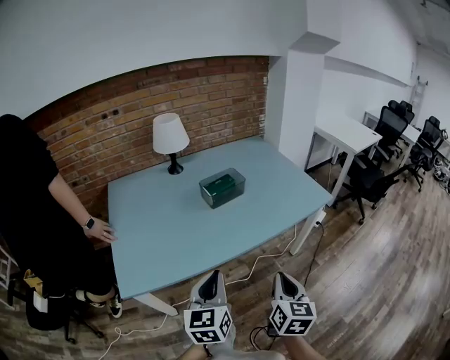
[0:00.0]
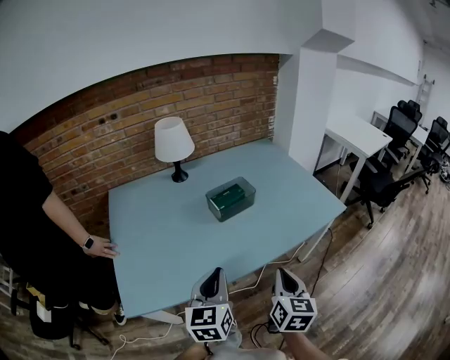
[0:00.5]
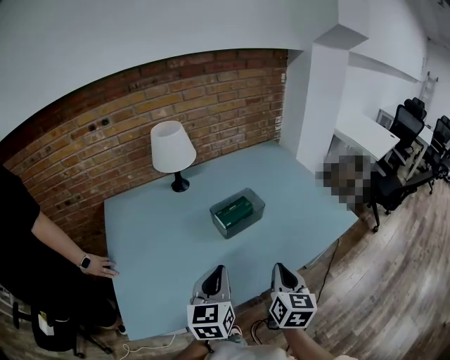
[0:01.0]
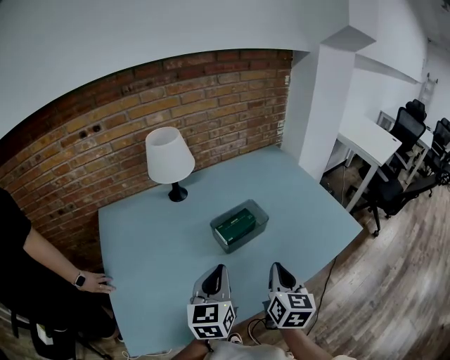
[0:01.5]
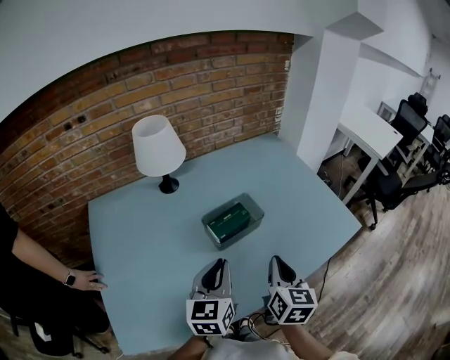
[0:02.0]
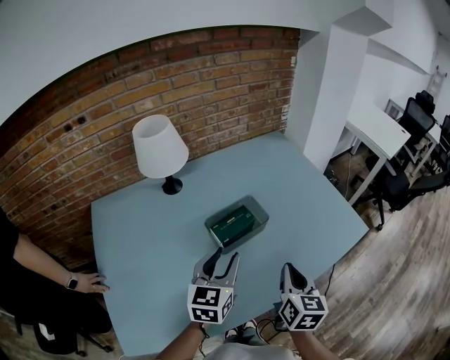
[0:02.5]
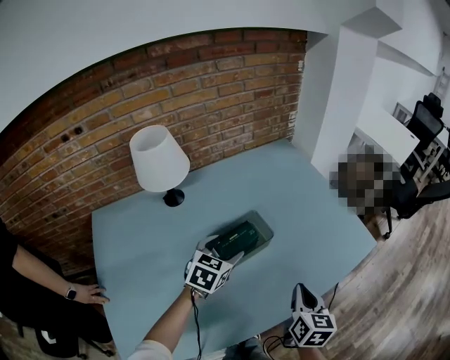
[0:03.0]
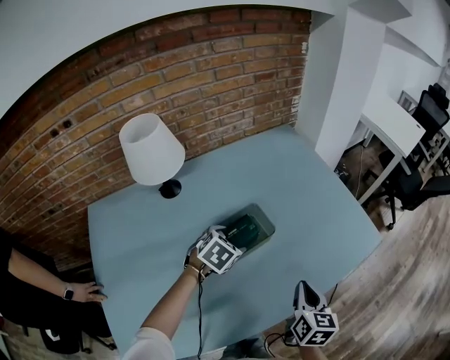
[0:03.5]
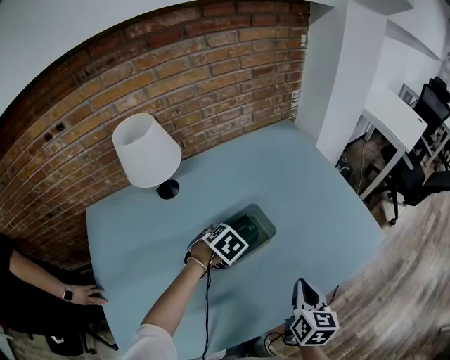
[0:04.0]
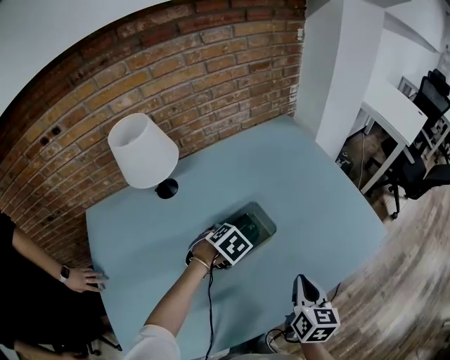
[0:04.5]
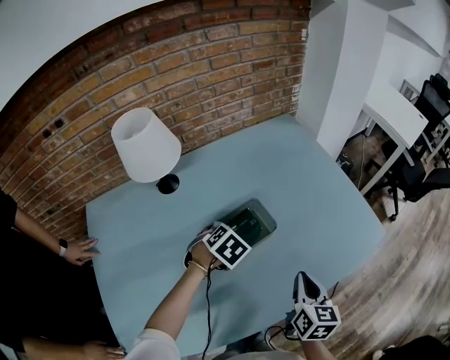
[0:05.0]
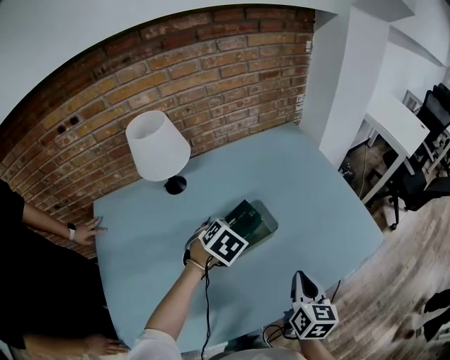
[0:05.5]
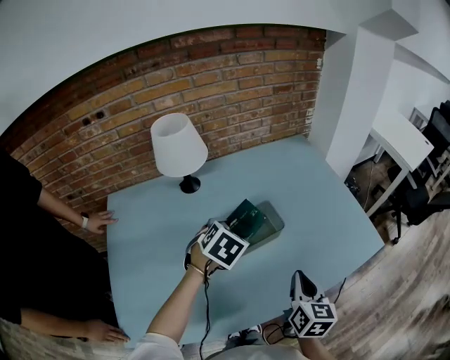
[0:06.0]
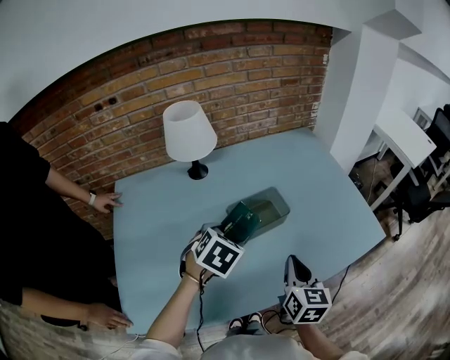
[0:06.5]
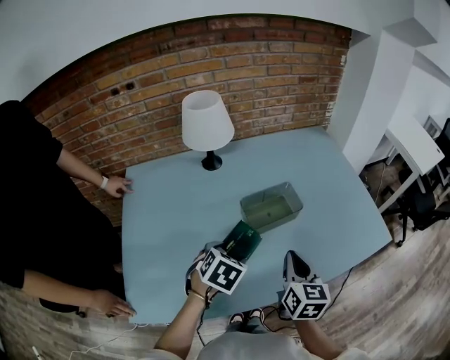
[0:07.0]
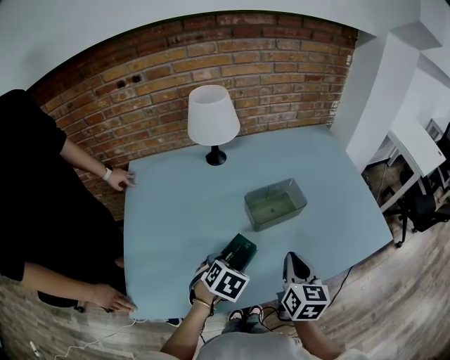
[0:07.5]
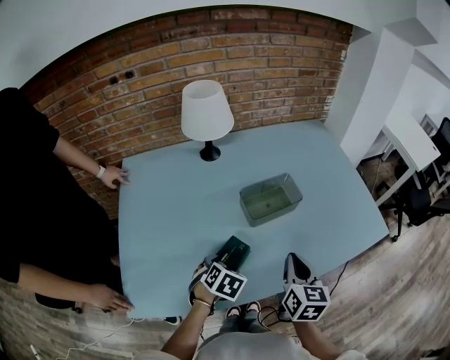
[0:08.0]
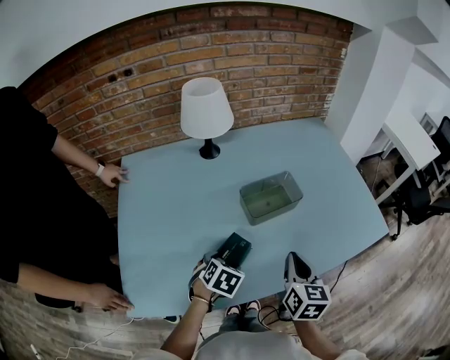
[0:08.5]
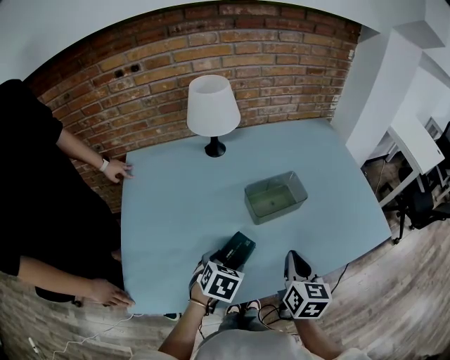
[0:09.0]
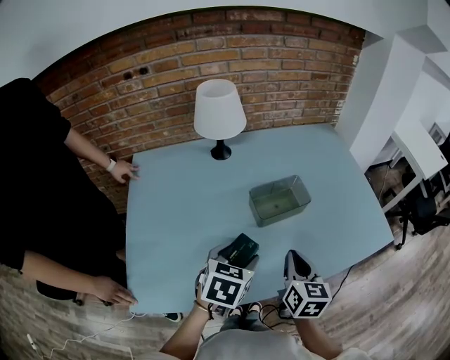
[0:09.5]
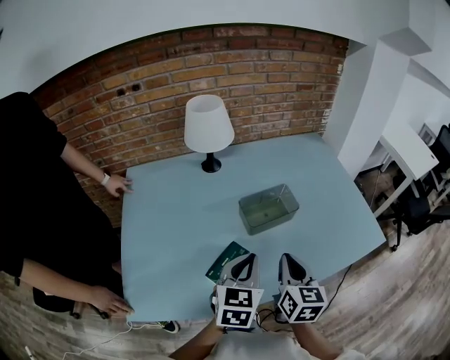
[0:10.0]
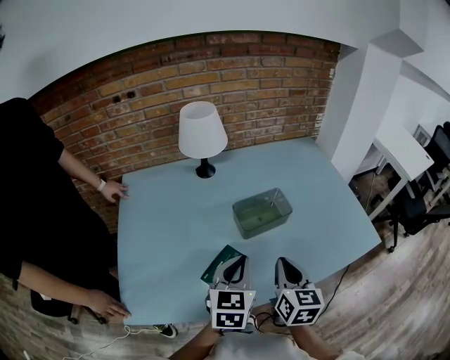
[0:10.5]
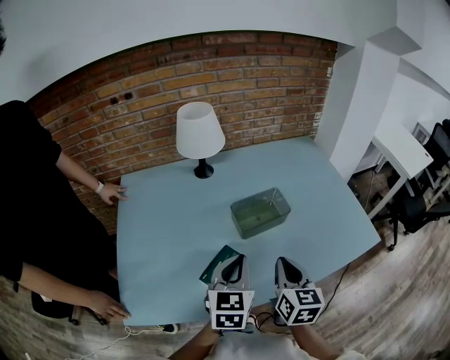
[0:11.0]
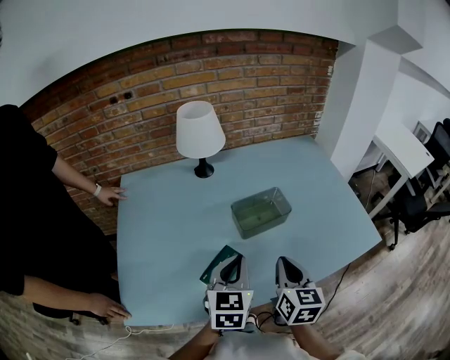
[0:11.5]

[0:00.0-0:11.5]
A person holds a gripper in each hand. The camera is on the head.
0:00.0 to 0:02.0: Both grippers travel together forward, approximately 35 cm.
0:02.0 to 0:04.0: The left gripper shifts about 25 cm forward and downward, points its fingers approximately 60 degrees further downward, and opens. The right gripper goes about 10 cm downward, forward and to the right.
0:04.0 to 0:06.0: The right gripper heads upward, covering approximately 5 cm. The left gripper is displaced upward by approximately 15 cm, and rotates about 20 degrees.
0:06.0 to 0:07.5: The right gripper moves to the left, some 10 cm, while the left gripper travels backward and downward by some 20 cm.
0:07.5 to 0:09.5: The left gripper moves upward, about 10 cm, and changes its angle by some 20 degrees.
0:09.5 to 0:11.5: The left gripper ends up about 5 cm from where it was, changes its angle by roughly 20 degrees, and closes up.

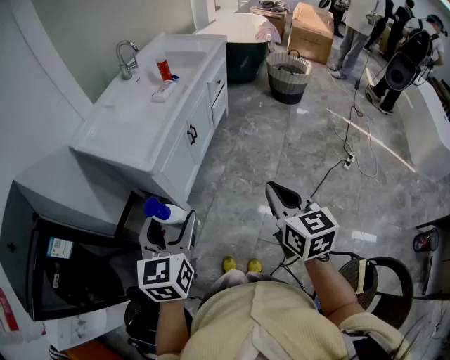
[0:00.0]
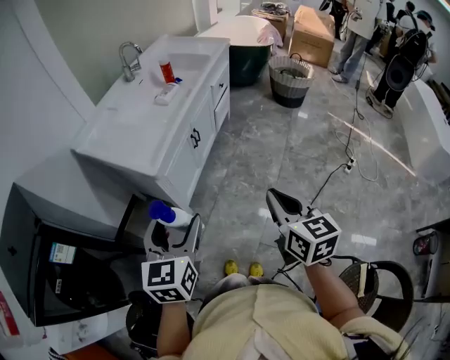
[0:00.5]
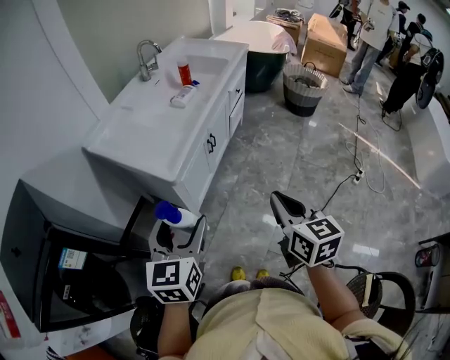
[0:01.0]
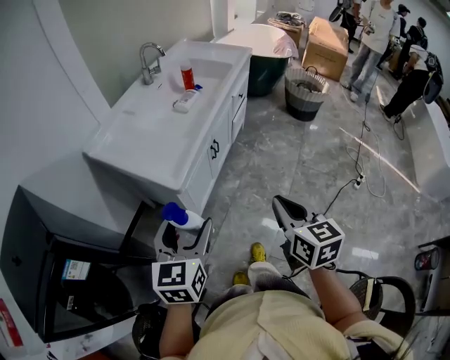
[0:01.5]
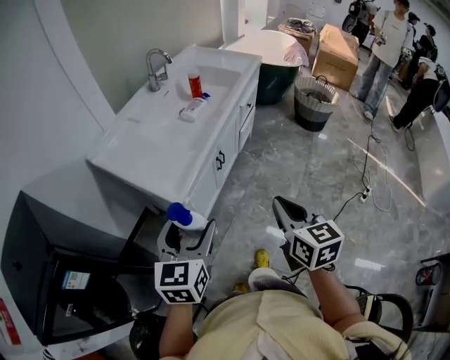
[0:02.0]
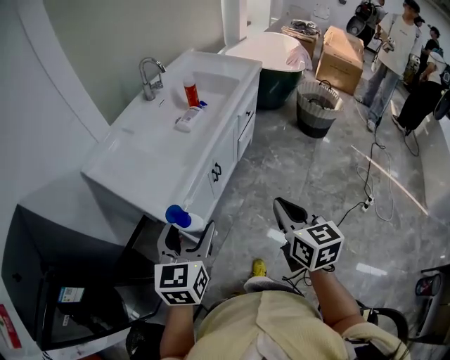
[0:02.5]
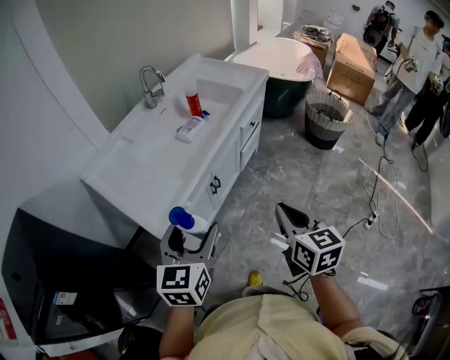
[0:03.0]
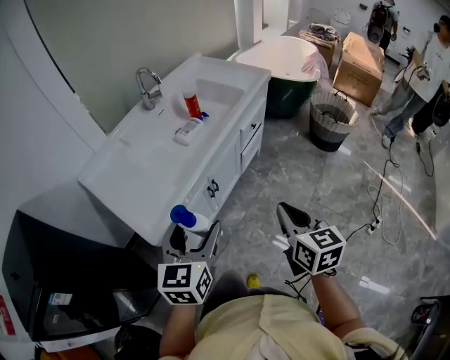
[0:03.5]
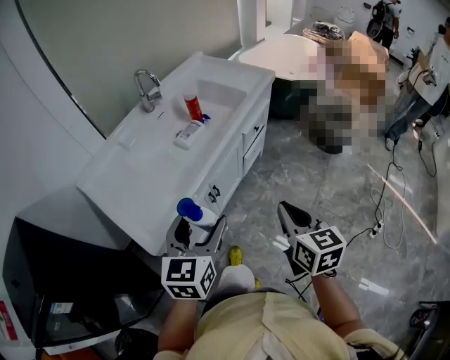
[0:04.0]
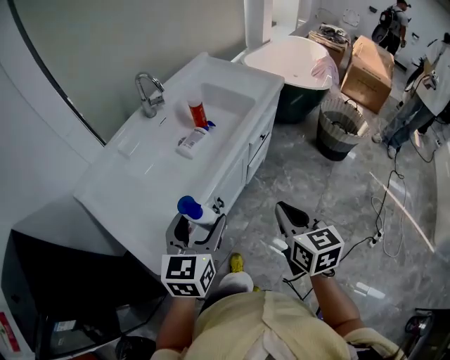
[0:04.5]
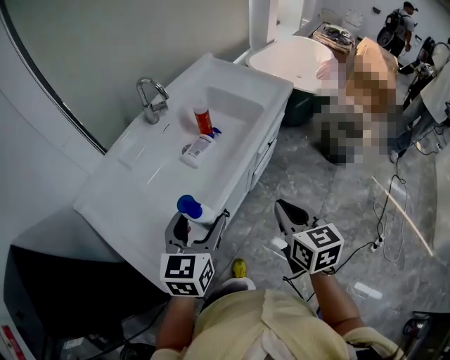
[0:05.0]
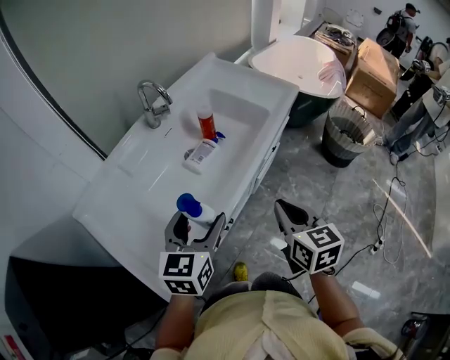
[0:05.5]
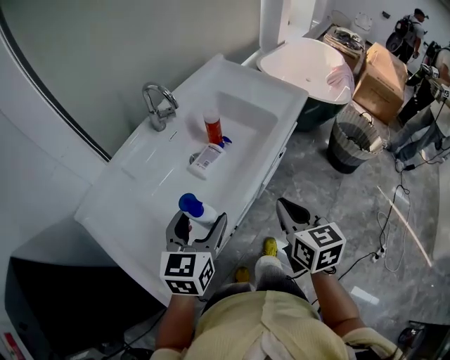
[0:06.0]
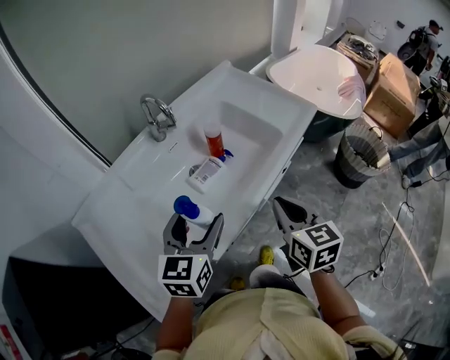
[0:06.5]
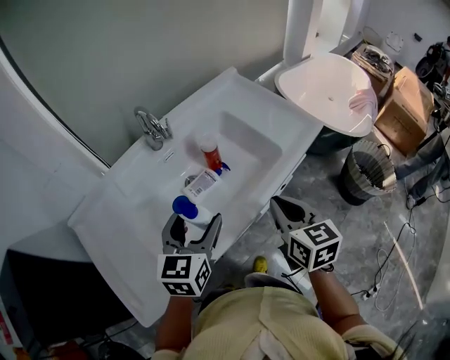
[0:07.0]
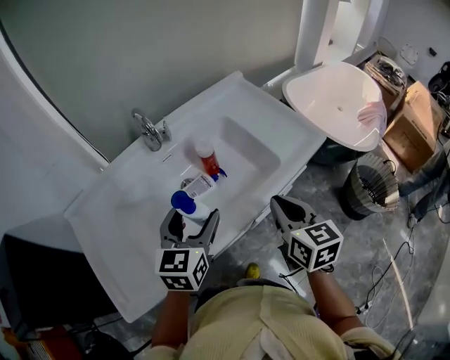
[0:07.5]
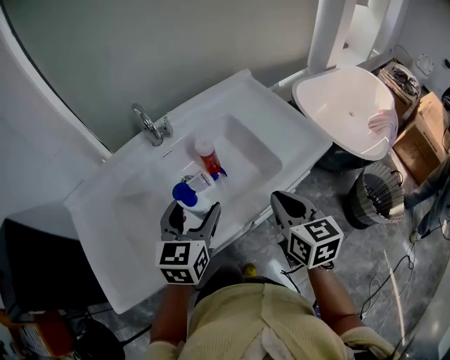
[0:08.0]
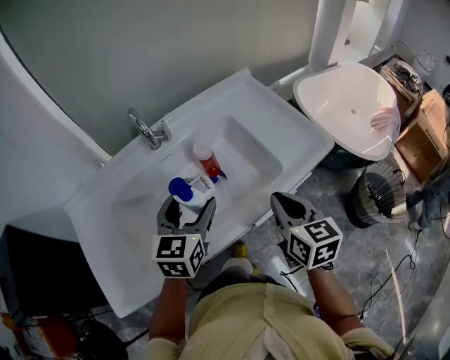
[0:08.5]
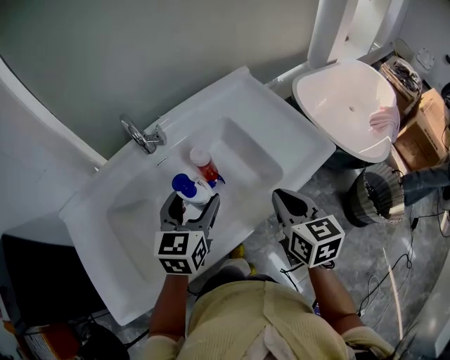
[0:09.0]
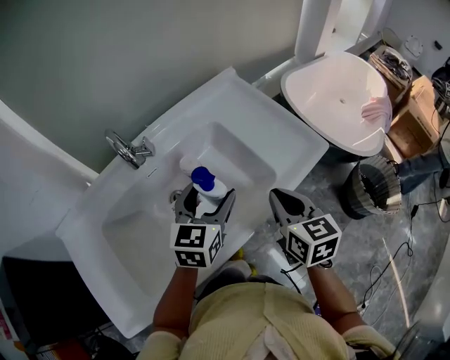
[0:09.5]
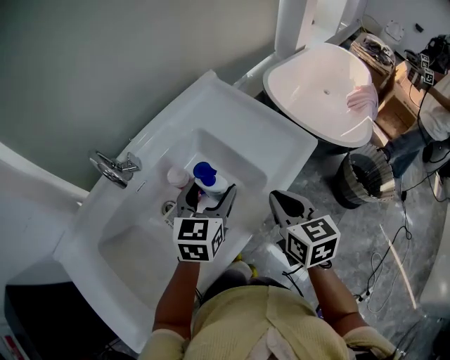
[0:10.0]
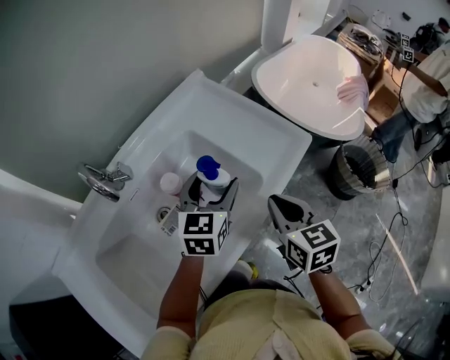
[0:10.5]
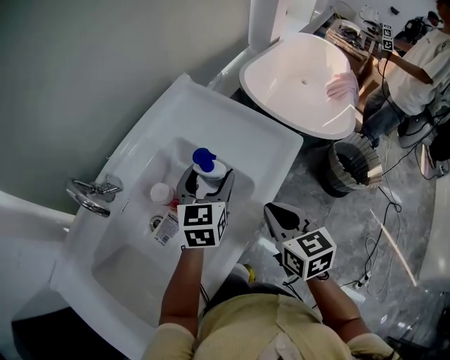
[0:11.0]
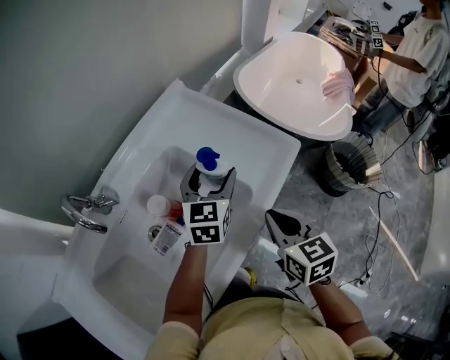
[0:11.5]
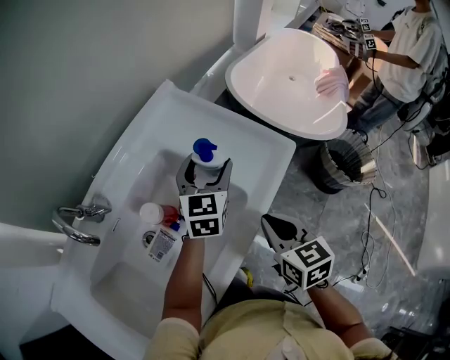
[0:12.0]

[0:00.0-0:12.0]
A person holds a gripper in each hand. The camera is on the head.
0:00.0 to 0:02.0: The left gripper travels forward by roughly 10 cm, while the right gripper heads forward and to the left, covering approximately 15 cm.
0:02.0 to 0:04.0: The grippers both shift forward and to the right by some 25 cm.
0:04.0 to 0:06.0: The grippers both shift forward by some 20 cm.
0:06.0 to 0:08.0: Both grippers travel together forward and to the right, some 20 cm. The left gripper turns by some 20 degrees. The right gripper turns by approximately 20 degrees.
0:08.0 to 0:10.0: The left gripper is displaced forward and to the right by about 20 cm; the right gripper shifts approximately 5 cm forward.
0:10.0 to 0:12.0: The left gripper goes roughly 15 cm forward and to the right.

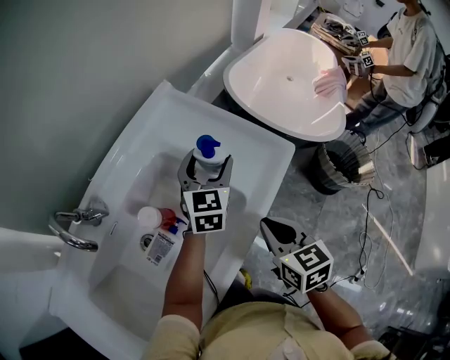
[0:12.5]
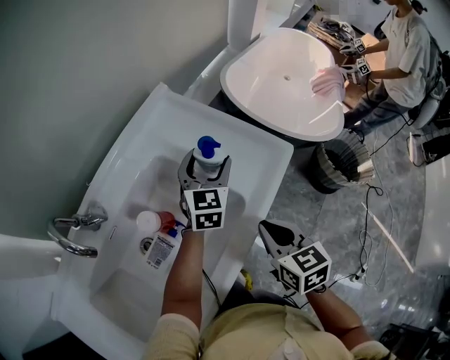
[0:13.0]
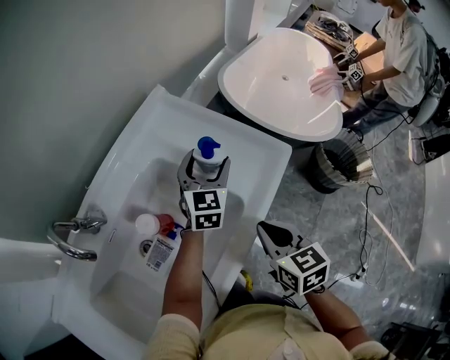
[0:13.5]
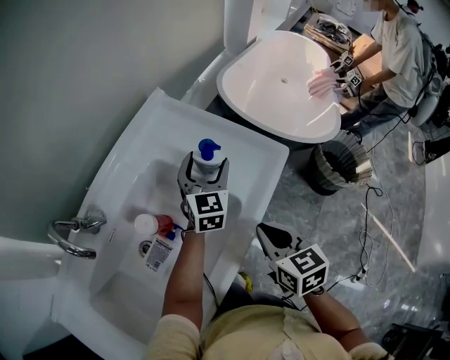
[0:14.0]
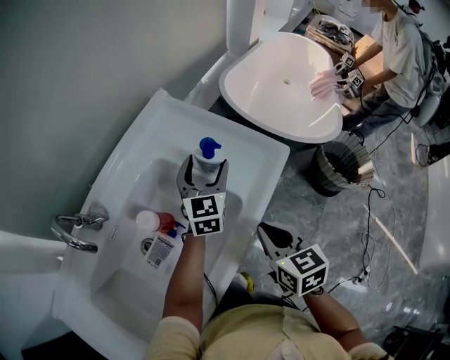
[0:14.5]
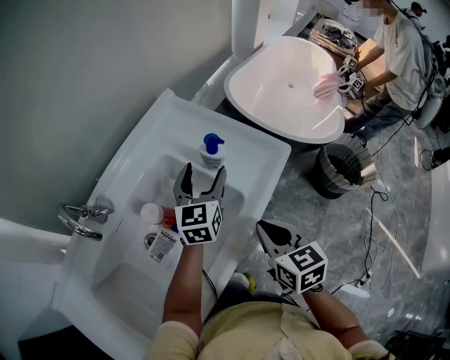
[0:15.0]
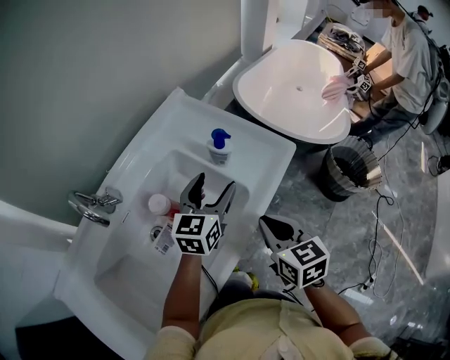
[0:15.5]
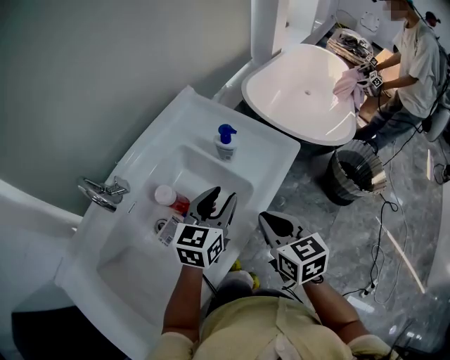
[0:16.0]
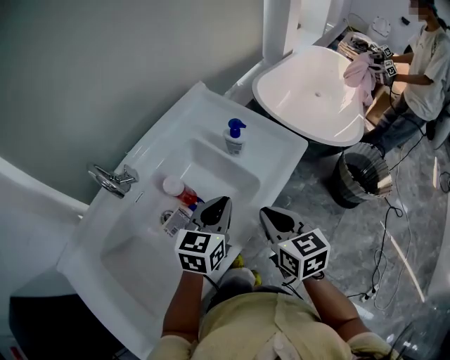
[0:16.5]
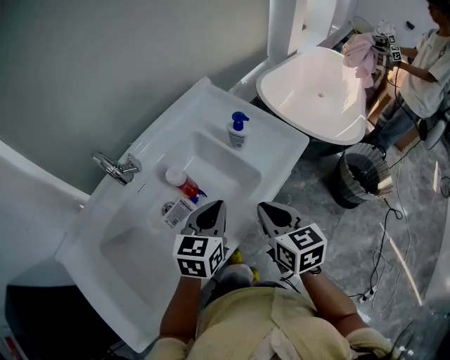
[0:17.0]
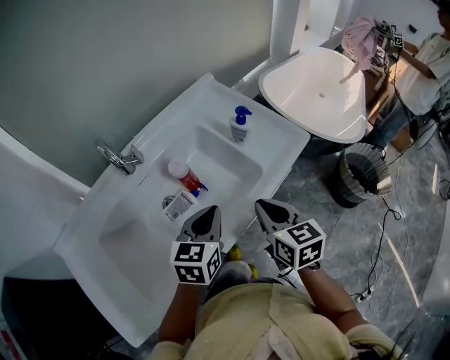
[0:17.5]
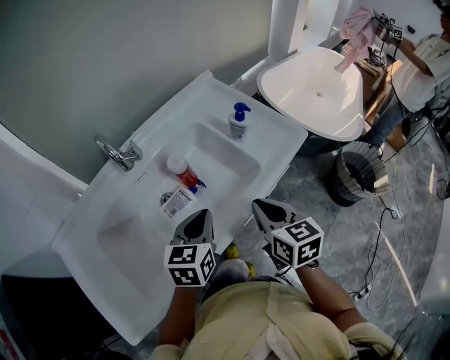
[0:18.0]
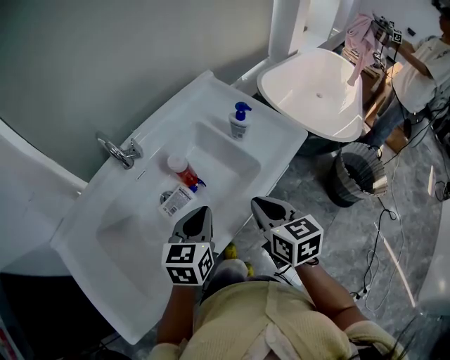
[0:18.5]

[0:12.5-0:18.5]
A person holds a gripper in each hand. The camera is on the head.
0:12.5 to 0:14.5: The grippers make only small movements.
0:14.5 to 0:16.5: The right gripper moves approximately 5 cm, while the left gripper goes some 20 cm backward, and closes.
0:16.5 to 0:18.5: The left gripper moves backward and to the left, some 10 cm.
